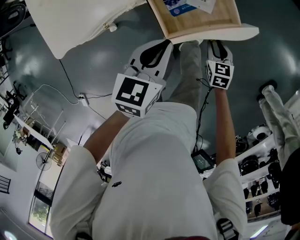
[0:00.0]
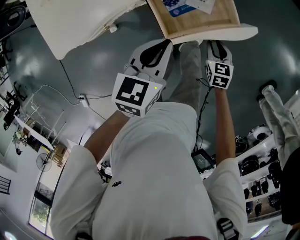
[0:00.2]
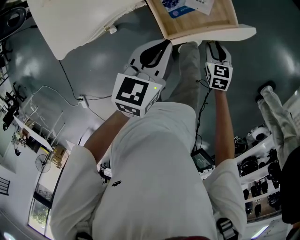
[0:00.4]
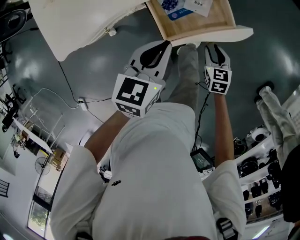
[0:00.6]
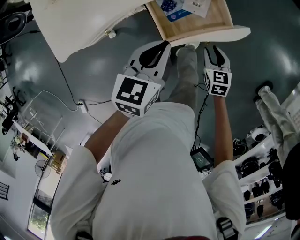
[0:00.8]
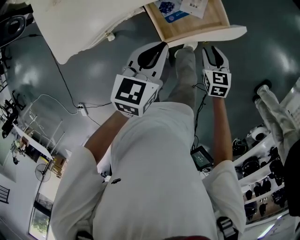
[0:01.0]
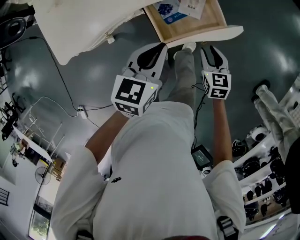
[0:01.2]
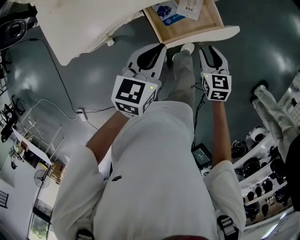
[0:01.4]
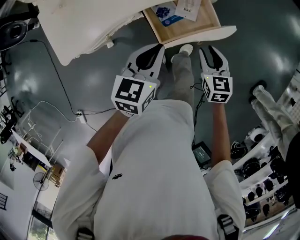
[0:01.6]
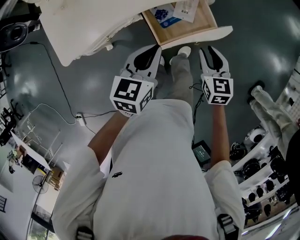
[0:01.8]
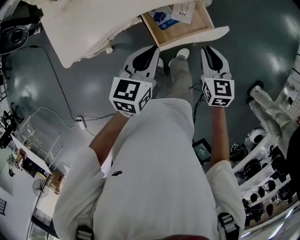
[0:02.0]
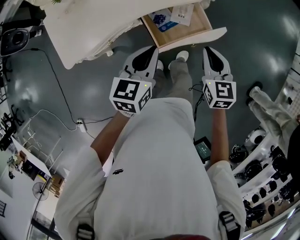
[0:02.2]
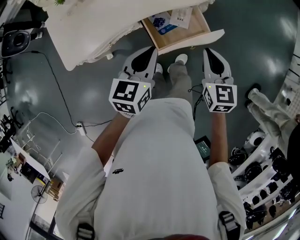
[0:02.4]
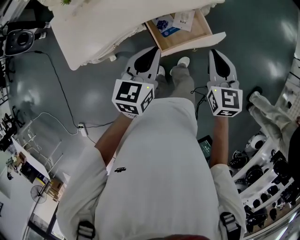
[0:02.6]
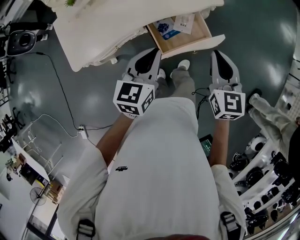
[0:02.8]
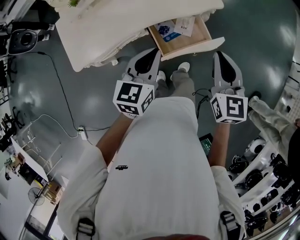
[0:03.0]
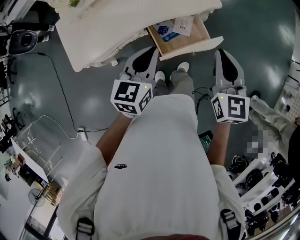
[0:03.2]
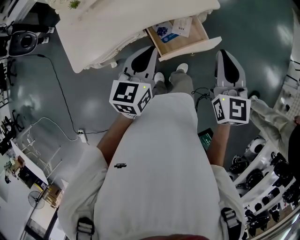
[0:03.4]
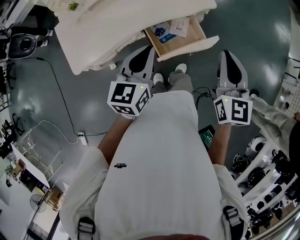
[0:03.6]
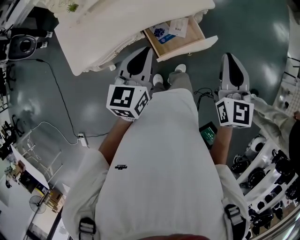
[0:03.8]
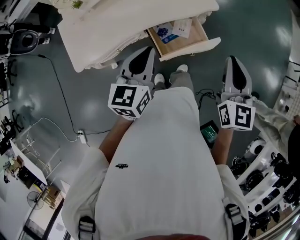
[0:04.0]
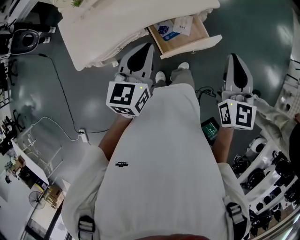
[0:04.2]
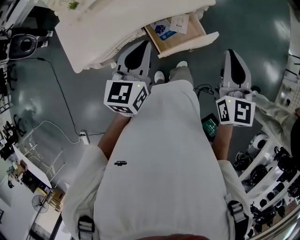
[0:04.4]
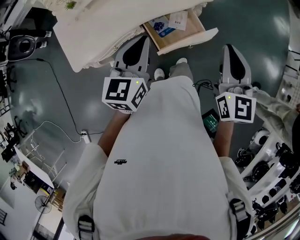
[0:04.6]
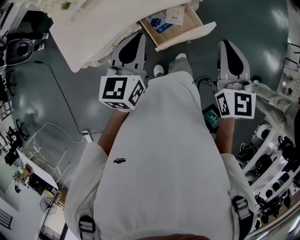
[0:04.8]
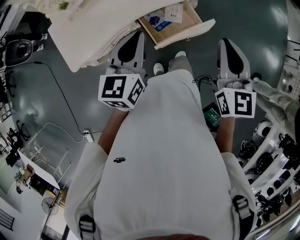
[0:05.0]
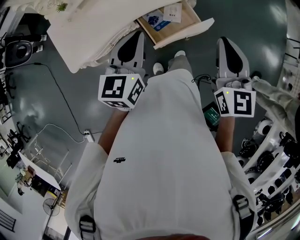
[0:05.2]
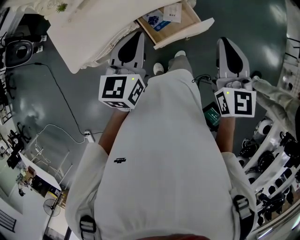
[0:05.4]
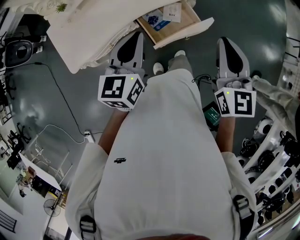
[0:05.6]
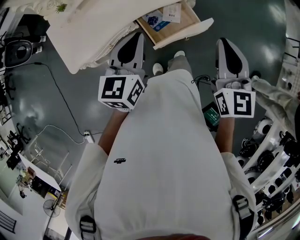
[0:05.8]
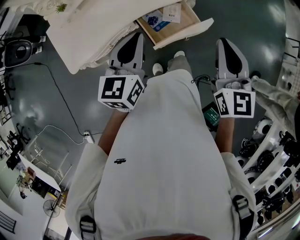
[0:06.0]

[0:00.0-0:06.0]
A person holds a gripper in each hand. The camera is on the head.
0:00.0 to 0:01.6: The right gripper moves upward, some 15 cm, while the left gripper heads upward, covering roughly 5 cm.
0:01.6 to 0:03.0: The left gripper shifts roughly 10 cm upward. The right gripper heads upward, covering approximately 25 cm, turns by roughly 20 degrees, and closes up.
0:03.0 to 0:04.4: The two grippers go some 5 cm upward.
0:04.4 to 0:06.0: The grippers make only small movements.

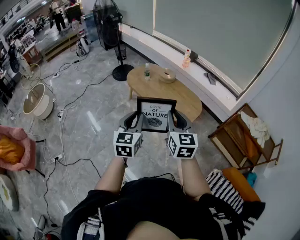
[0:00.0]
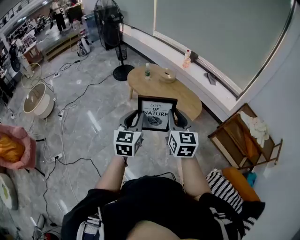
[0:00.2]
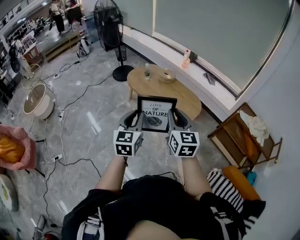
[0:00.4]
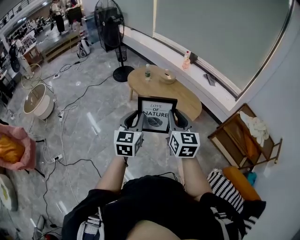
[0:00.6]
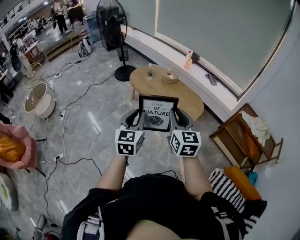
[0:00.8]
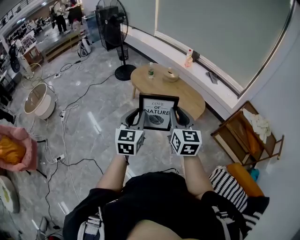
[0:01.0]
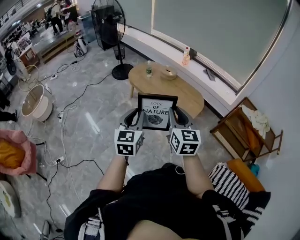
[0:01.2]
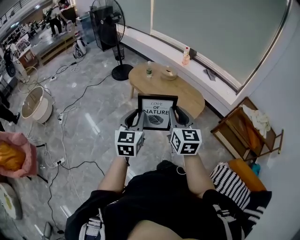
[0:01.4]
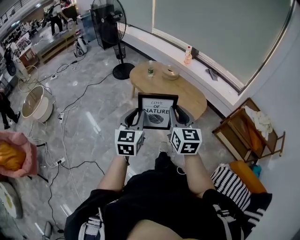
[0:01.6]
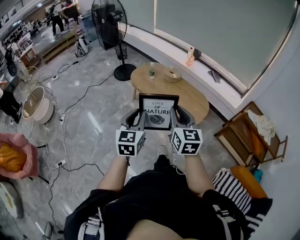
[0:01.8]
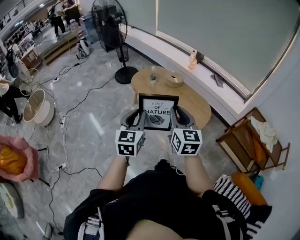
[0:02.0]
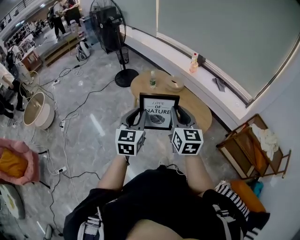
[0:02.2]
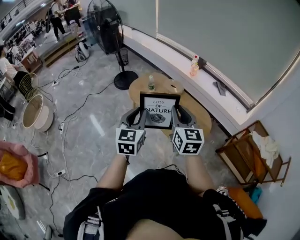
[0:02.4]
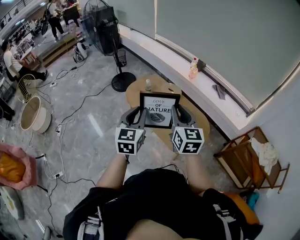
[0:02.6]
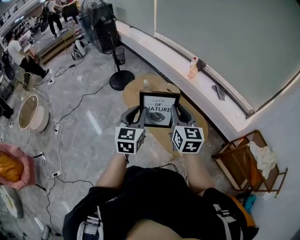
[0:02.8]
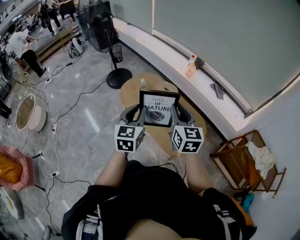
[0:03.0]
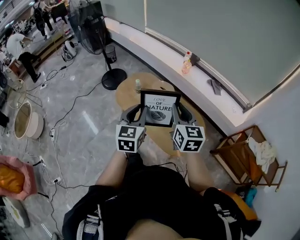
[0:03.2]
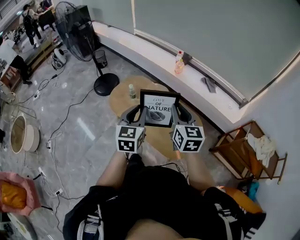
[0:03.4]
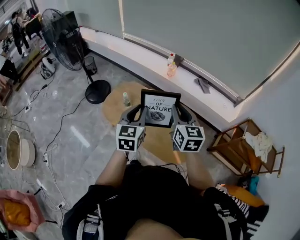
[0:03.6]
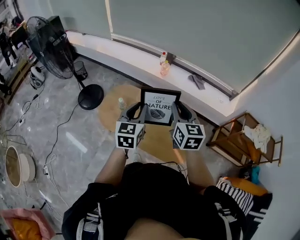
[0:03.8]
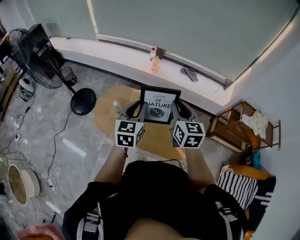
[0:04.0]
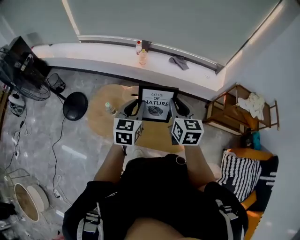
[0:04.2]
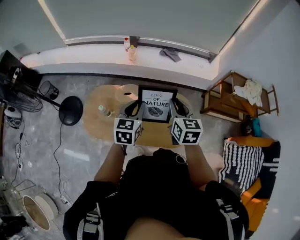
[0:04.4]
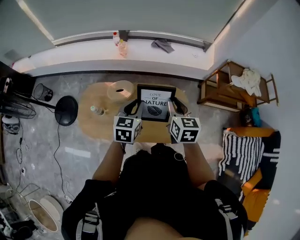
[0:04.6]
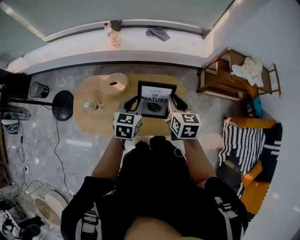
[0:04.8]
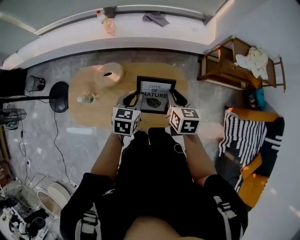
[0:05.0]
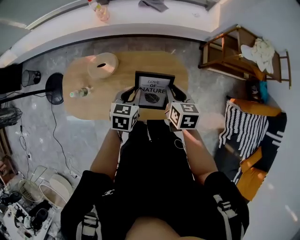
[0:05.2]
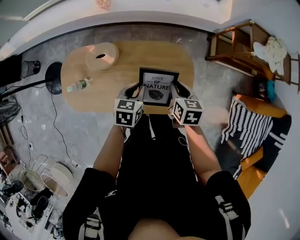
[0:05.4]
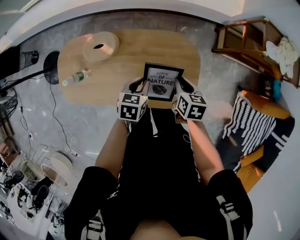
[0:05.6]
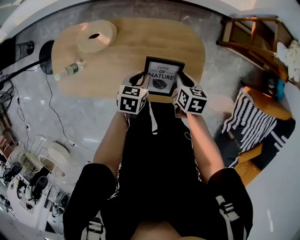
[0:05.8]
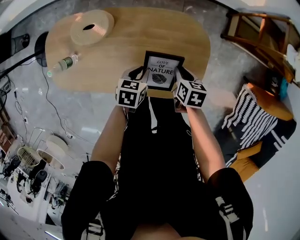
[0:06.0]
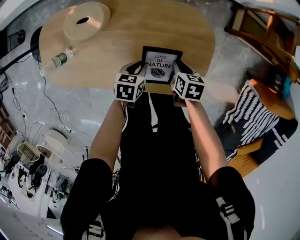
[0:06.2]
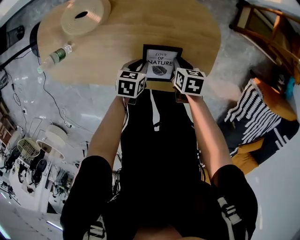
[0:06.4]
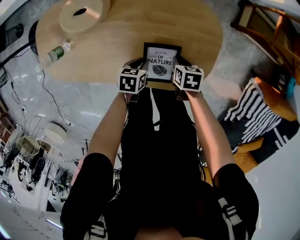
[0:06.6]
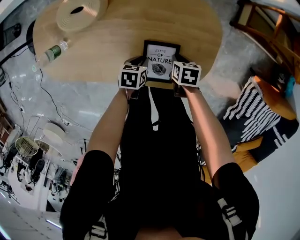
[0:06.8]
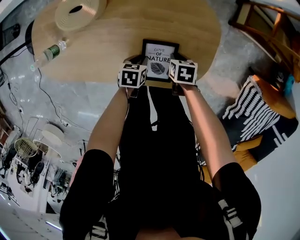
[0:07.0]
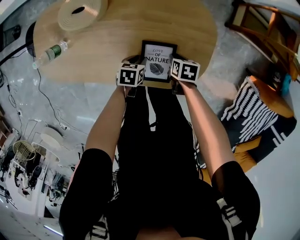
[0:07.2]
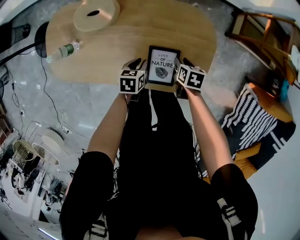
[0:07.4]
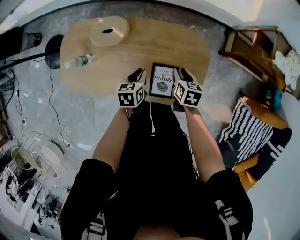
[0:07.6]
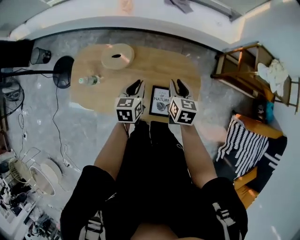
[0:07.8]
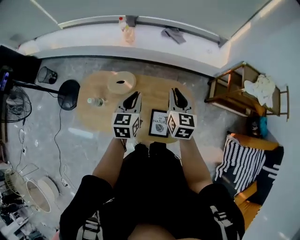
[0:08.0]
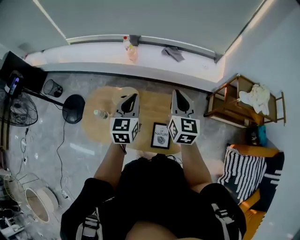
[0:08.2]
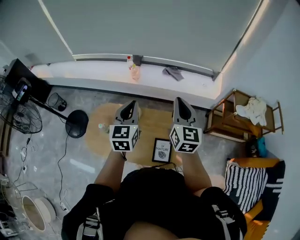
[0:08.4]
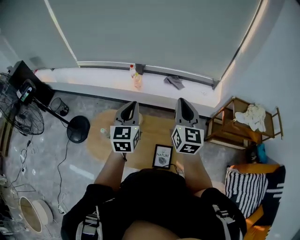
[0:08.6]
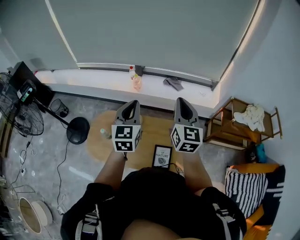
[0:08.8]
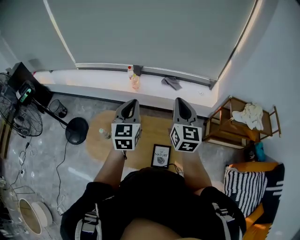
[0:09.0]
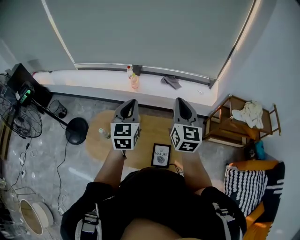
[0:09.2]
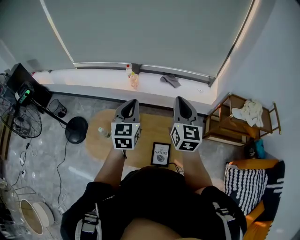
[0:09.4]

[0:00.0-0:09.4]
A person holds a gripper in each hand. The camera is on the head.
0:00.0 to 0:01.6: The two grippers go approximately 10 cm to the left.
0:01.6 to 0:03.2: The two grippers travel together, forward, some 50 cm.
0:03.2 to 0:04.8: The left gripper changes place by approximately 35 cm, and turns by about 50 degrees. Meanwhile the right gripper moves roughly 30 cm, and swivels some 50 degrees.
0:04.8 to 0:06.2: The two grippers go approximately 50 cm downward. The right gripper turns by some 40 degrees, while the left gripper turns by approximately 40 degrees.
0:06.2 to 0:07.8: Both grippers travel together upward, about 25 cm. The left gripper turns by about 30 degrees; the right gripper swivels about 30 degrees.
0:07.8 to 0:09.4: The two grippers go approximately 40 cm upward. The right gripper tilts its fingers approximately 40 degrees upward, and closes up. Meanwhile the left gripper changes its angle by some 40 degrees.

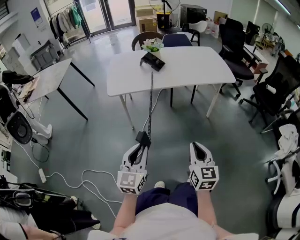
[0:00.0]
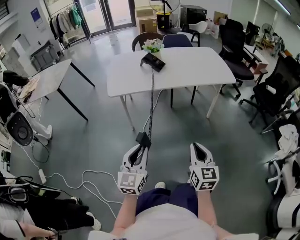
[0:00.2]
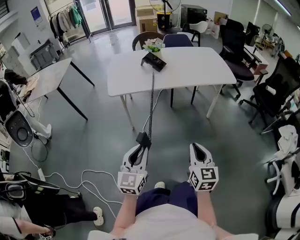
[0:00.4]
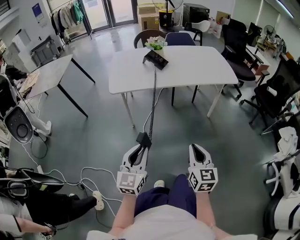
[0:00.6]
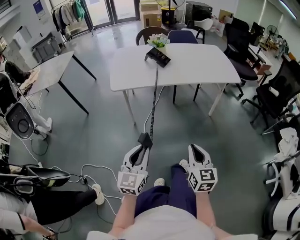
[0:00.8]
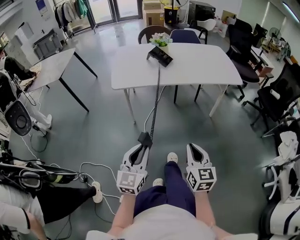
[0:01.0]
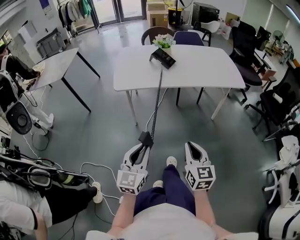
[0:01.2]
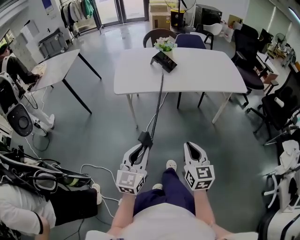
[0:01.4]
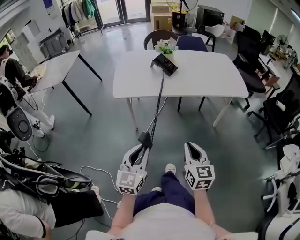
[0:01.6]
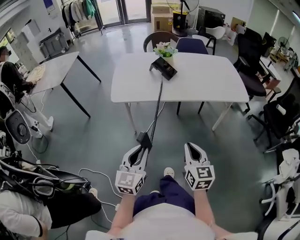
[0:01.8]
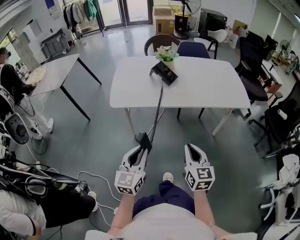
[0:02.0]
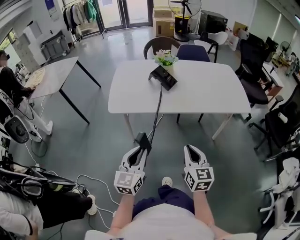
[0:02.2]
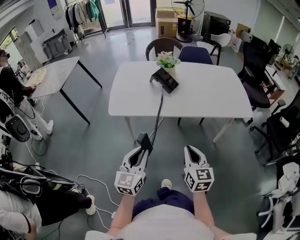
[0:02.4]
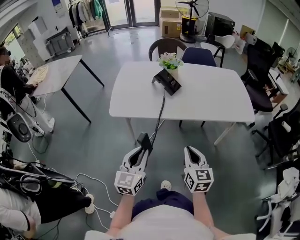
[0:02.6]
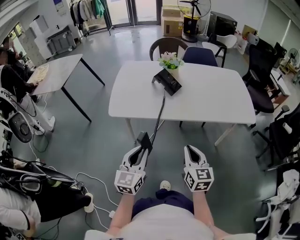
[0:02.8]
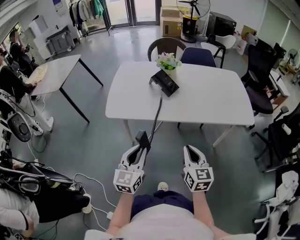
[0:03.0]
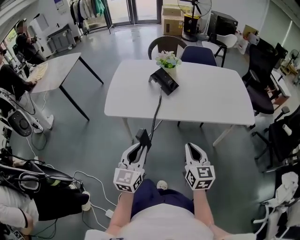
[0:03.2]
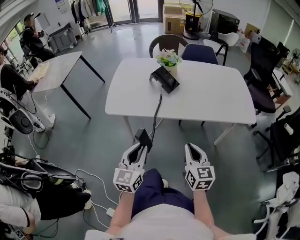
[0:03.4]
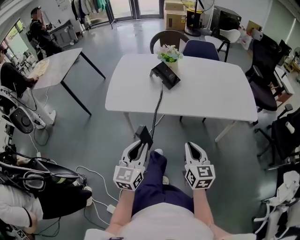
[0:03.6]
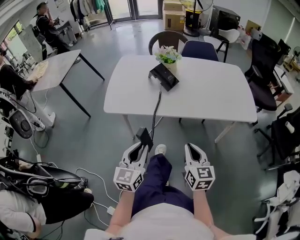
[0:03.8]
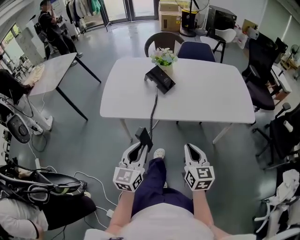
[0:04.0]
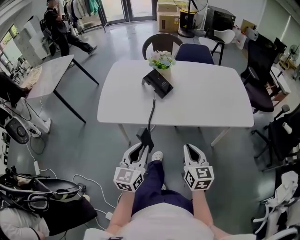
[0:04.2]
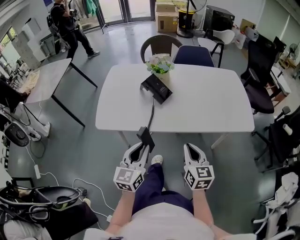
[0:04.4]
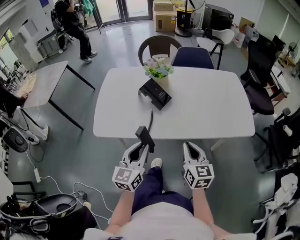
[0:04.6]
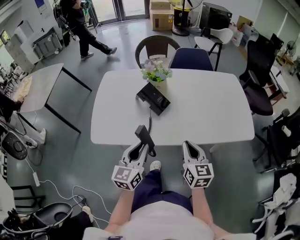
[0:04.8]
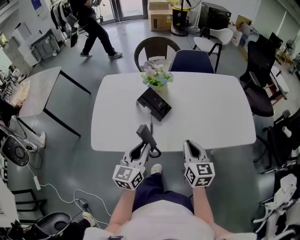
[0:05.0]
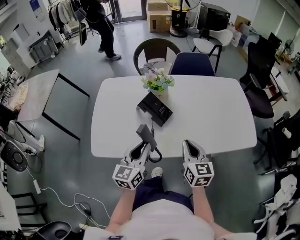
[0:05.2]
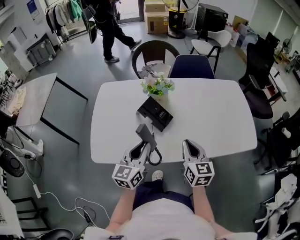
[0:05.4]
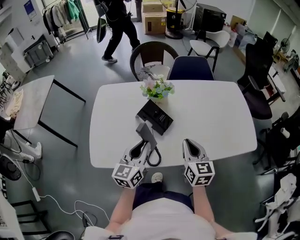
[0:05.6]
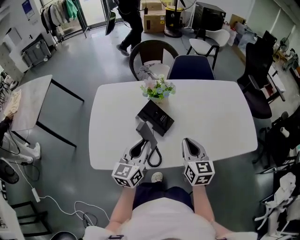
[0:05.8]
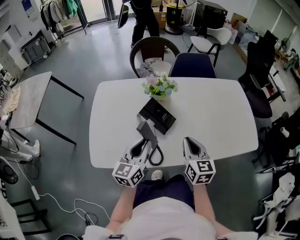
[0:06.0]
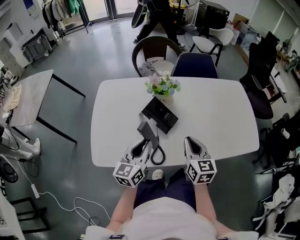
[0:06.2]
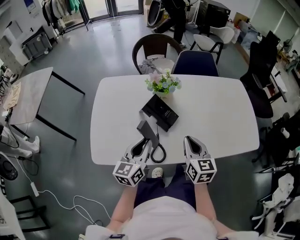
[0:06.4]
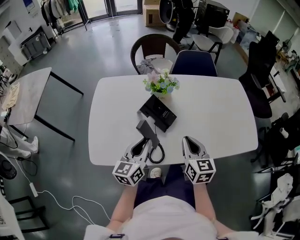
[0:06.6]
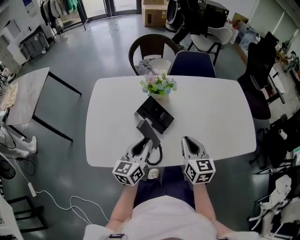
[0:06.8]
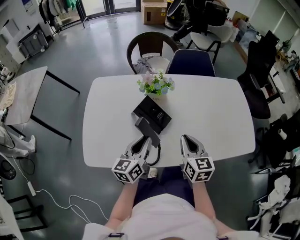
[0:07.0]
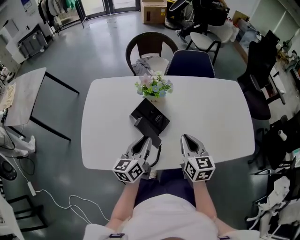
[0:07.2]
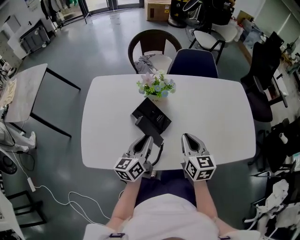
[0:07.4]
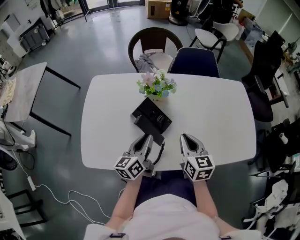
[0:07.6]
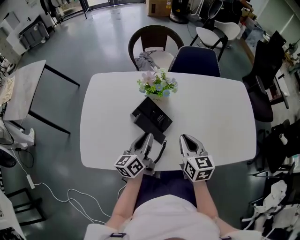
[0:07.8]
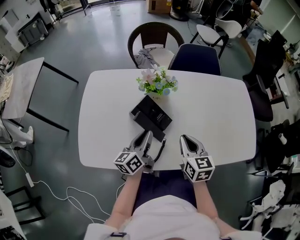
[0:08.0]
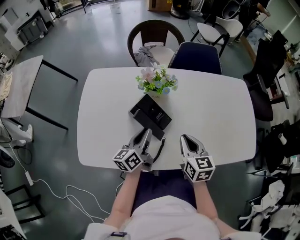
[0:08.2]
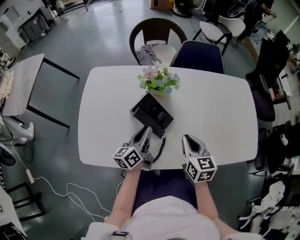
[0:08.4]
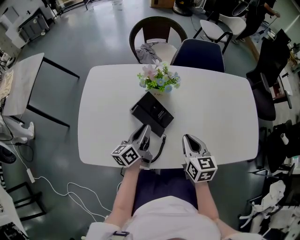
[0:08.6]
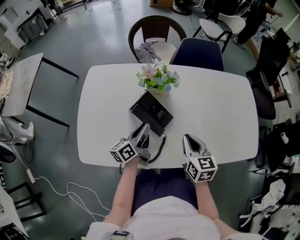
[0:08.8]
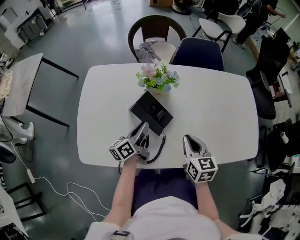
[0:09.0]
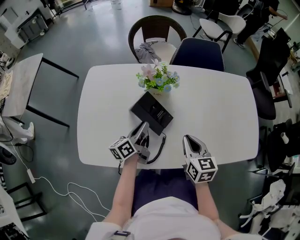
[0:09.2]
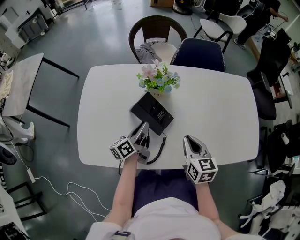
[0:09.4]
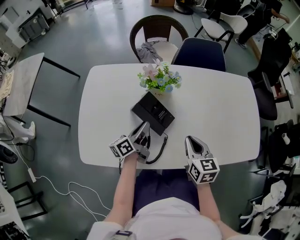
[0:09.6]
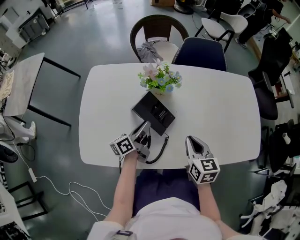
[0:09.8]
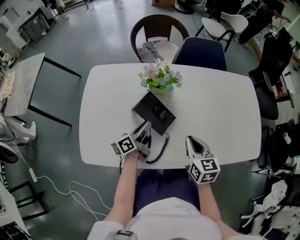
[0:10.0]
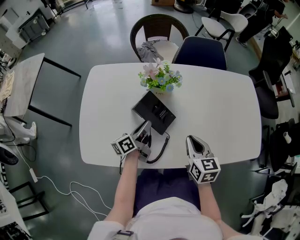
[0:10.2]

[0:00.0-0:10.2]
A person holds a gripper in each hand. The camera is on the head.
0:00.0 to 0:01.4: The right gripper moves forward and to the left, some 10 cm.
0:01.4 to 0:03.0: Both grippers travel together forward, some 20 cm.
0:03.0 to 0:04.4: The right gripper is displaced forward by about 10 cm. Meanwhile the left gripper travels forward and to the right by roughly 10 cm.
0:04.4 to 0:05.8: Both grippers travel together forward, roughly 20 cm.
0:05.8 to 0:07.2: The left gripper moves some 5 cm.
0:07.2 to 0:08.8: The left gripper is displaced downward and forward by about 10 cm, and turns by about 20 degrees.
0:08.8 to 0:10.2: There are only small adjustments of the grippers.
